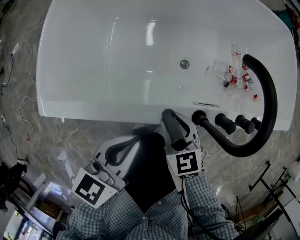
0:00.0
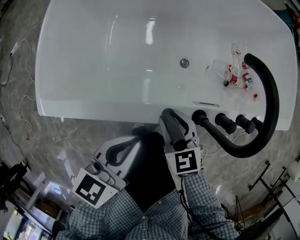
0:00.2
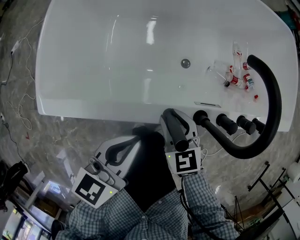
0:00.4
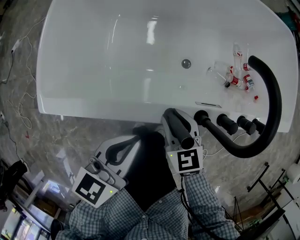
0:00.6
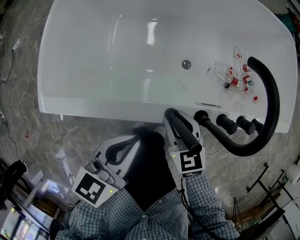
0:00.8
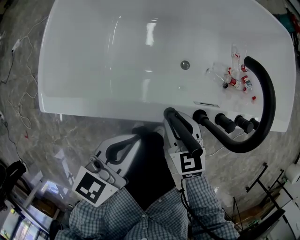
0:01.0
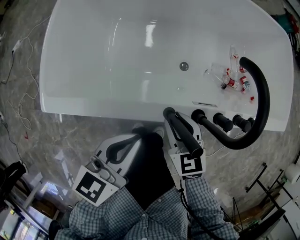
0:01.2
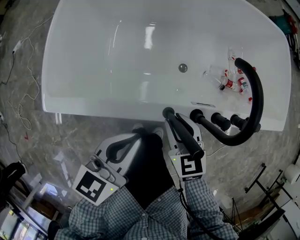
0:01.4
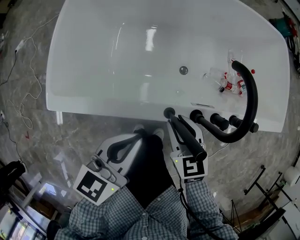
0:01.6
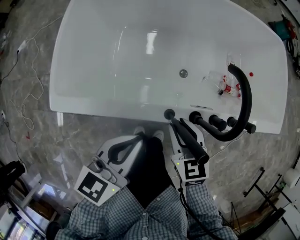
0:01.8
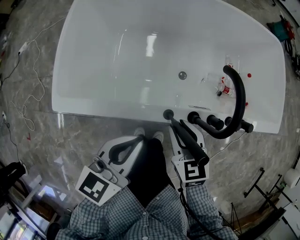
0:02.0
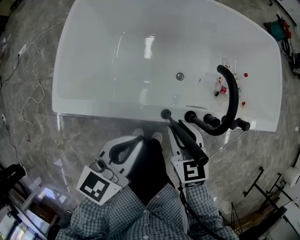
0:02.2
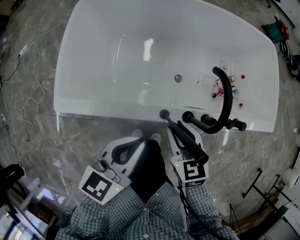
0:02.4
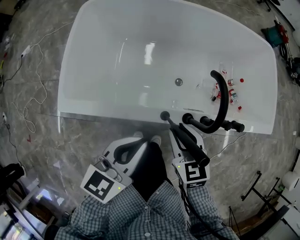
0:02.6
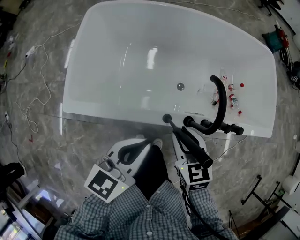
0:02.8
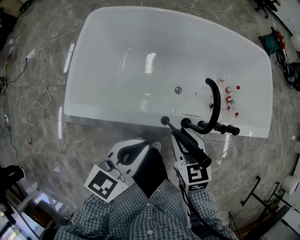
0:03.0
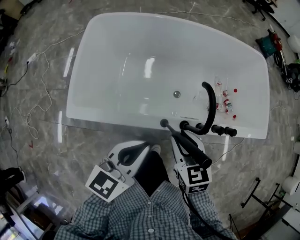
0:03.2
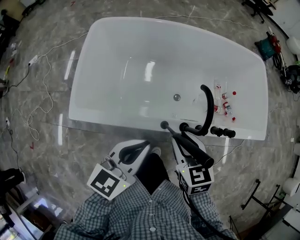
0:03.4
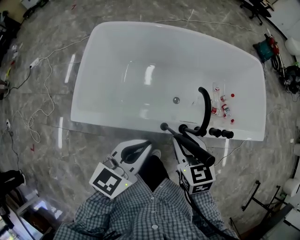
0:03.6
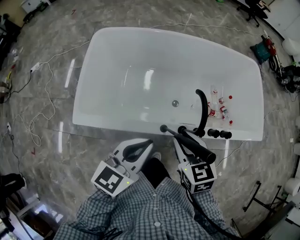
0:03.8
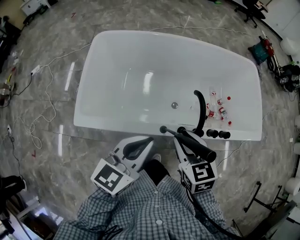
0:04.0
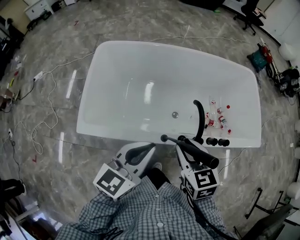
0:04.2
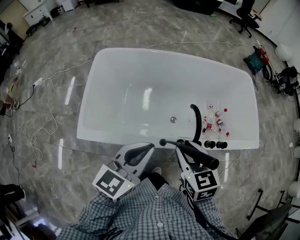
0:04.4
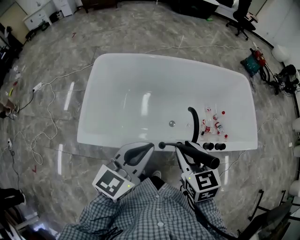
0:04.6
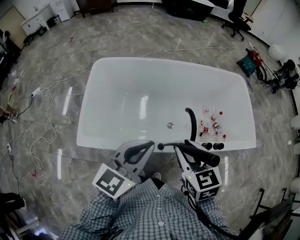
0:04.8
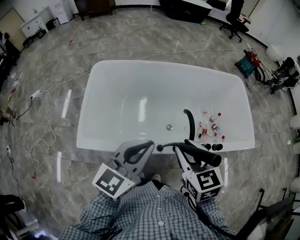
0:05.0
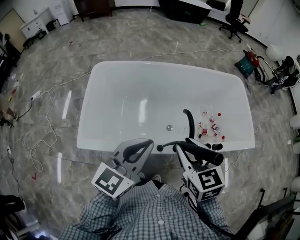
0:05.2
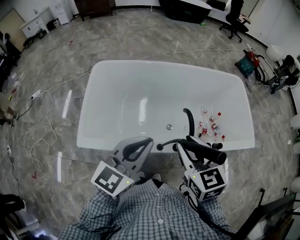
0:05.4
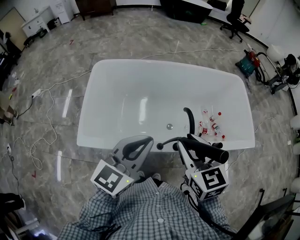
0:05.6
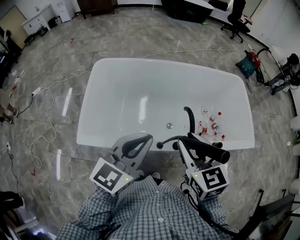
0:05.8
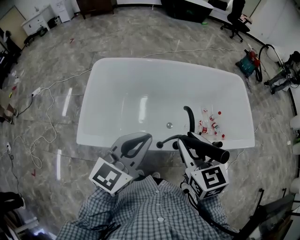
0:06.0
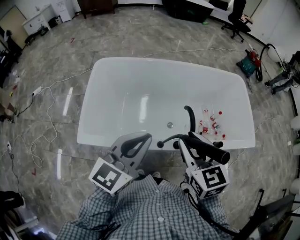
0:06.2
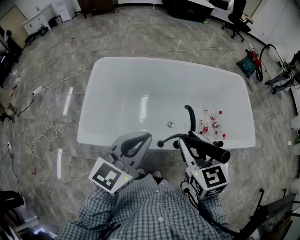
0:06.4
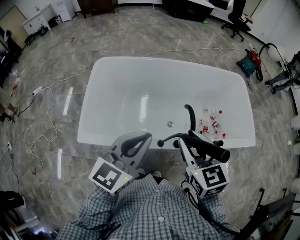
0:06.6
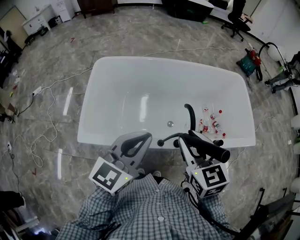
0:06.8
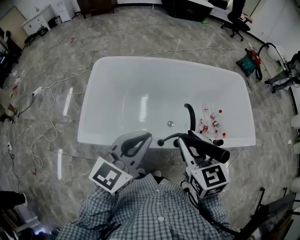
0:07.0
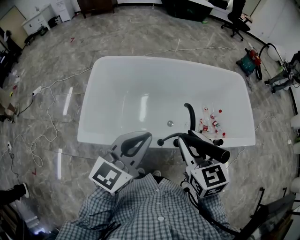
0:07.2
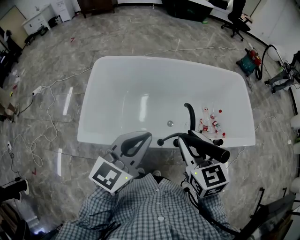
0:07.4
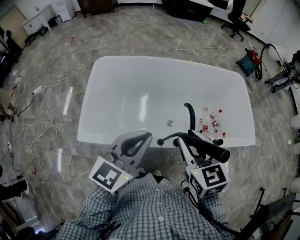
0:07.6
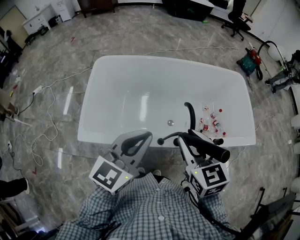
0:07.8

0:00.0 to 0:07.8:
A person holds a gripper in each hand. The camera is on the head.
0:00.0 to 0:01.6: The grippers both shift upward by roughly 5 cm.
0:01.6 to 0:03.2: Both grippers travel together upward, some 15 cm.
0:03.2 to 0:04.6: Both grippers move upward, approximately 15 cm.
0:04.6 to 0:06.2: The right gripper shifts about 5 cm upward.
0:06.2 to 0:07.8: The grippers make only small movements.

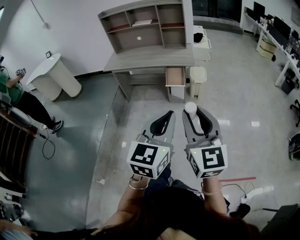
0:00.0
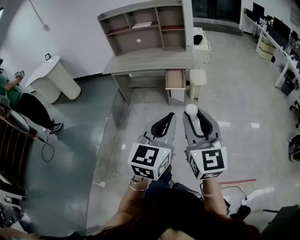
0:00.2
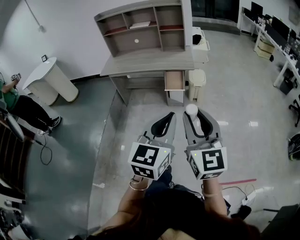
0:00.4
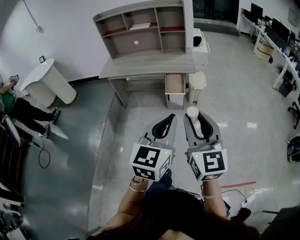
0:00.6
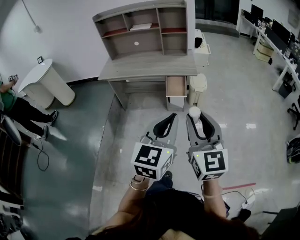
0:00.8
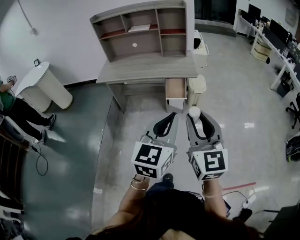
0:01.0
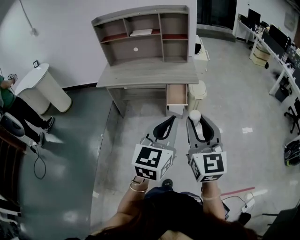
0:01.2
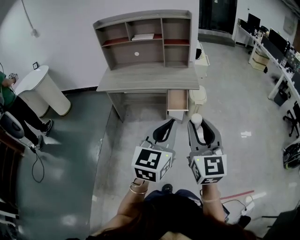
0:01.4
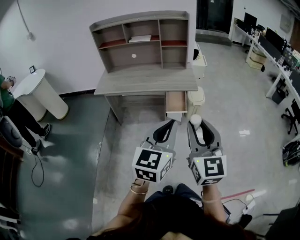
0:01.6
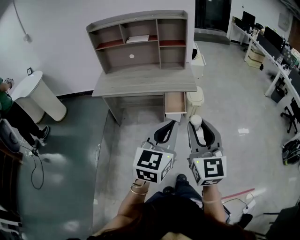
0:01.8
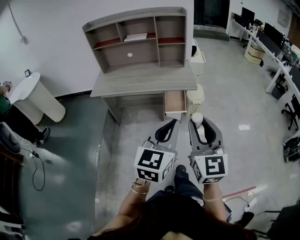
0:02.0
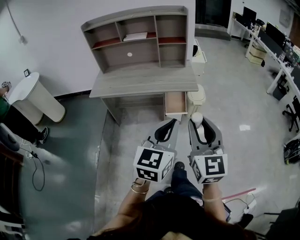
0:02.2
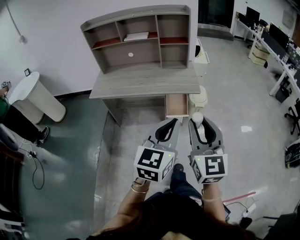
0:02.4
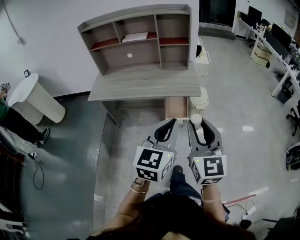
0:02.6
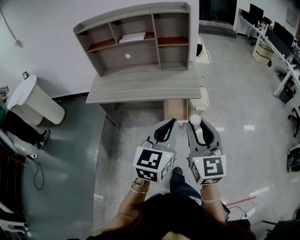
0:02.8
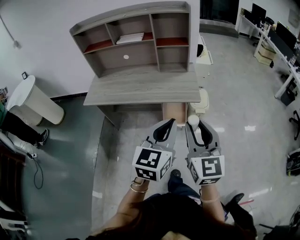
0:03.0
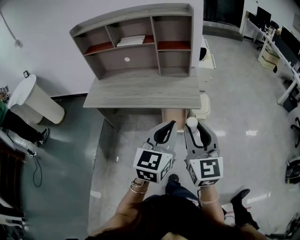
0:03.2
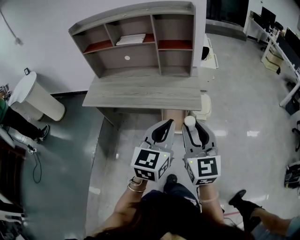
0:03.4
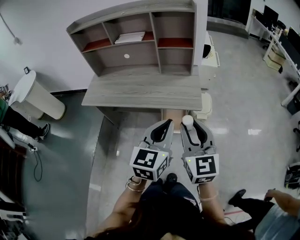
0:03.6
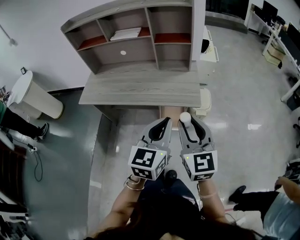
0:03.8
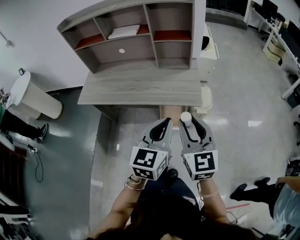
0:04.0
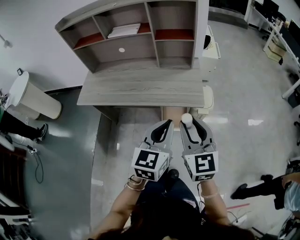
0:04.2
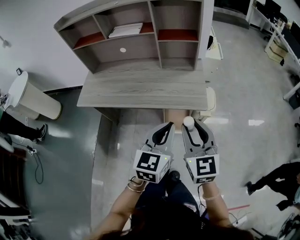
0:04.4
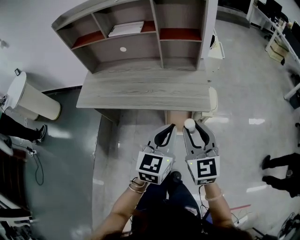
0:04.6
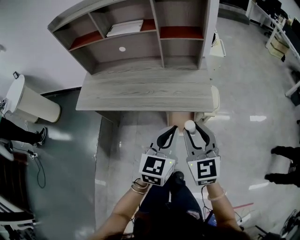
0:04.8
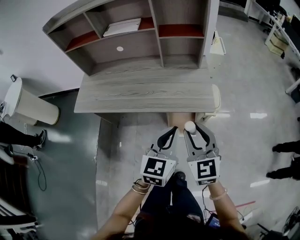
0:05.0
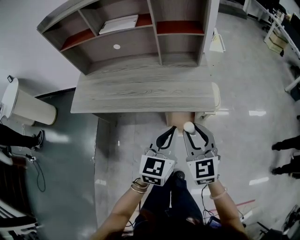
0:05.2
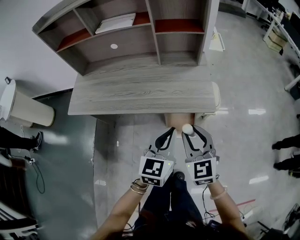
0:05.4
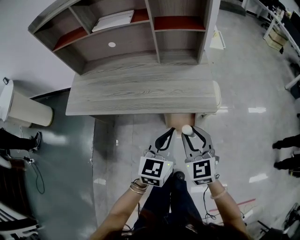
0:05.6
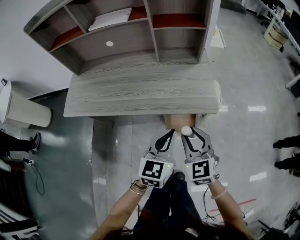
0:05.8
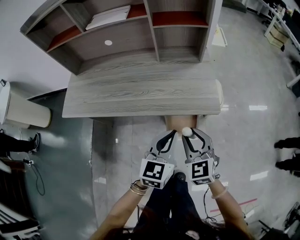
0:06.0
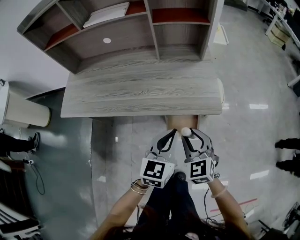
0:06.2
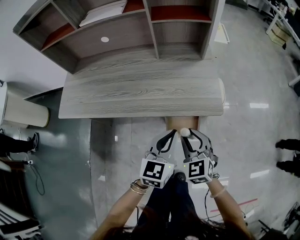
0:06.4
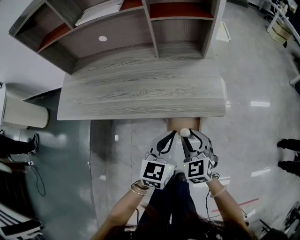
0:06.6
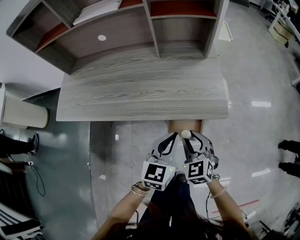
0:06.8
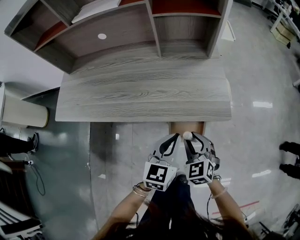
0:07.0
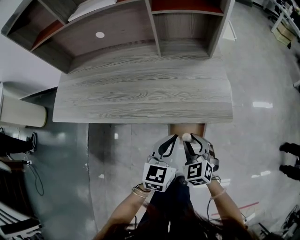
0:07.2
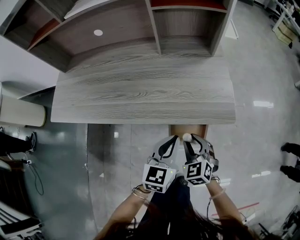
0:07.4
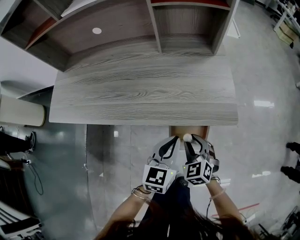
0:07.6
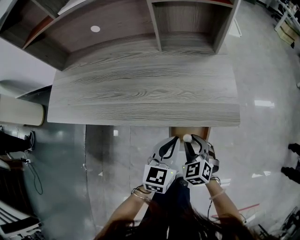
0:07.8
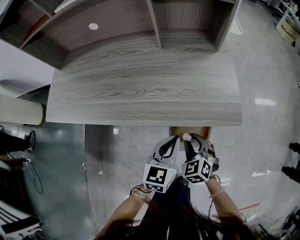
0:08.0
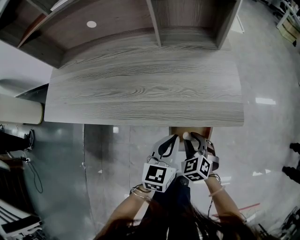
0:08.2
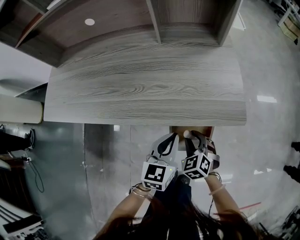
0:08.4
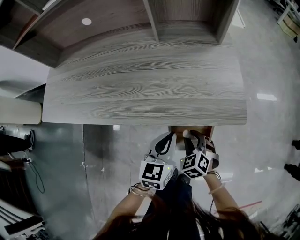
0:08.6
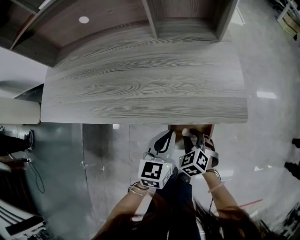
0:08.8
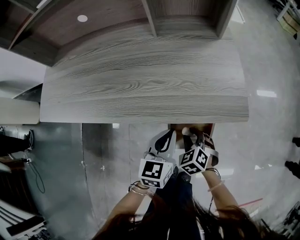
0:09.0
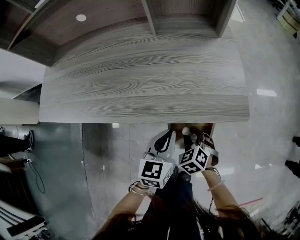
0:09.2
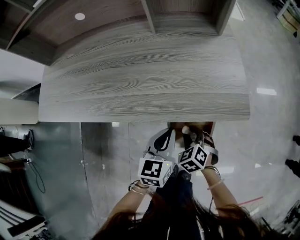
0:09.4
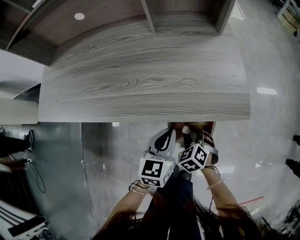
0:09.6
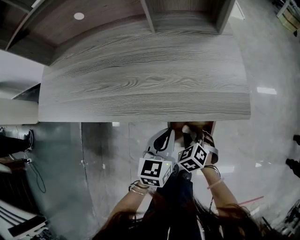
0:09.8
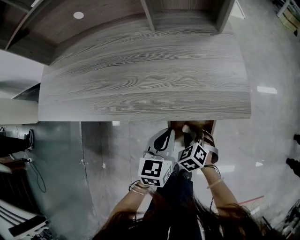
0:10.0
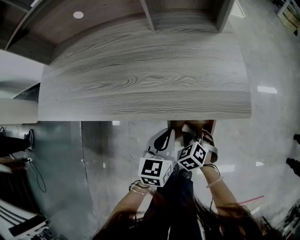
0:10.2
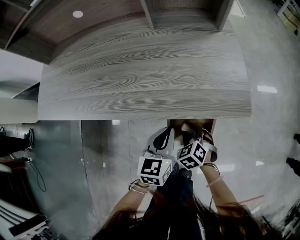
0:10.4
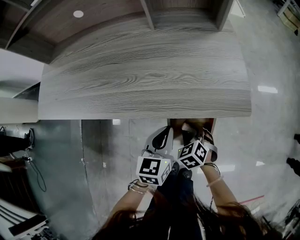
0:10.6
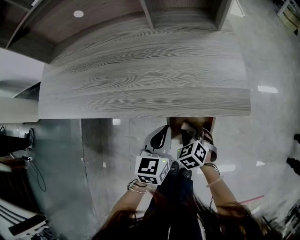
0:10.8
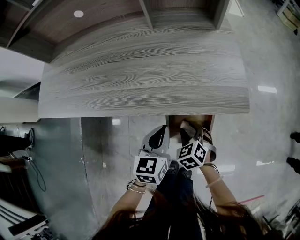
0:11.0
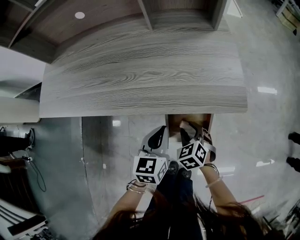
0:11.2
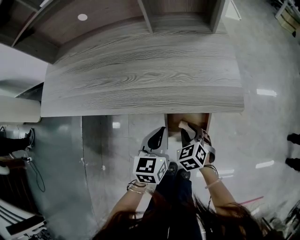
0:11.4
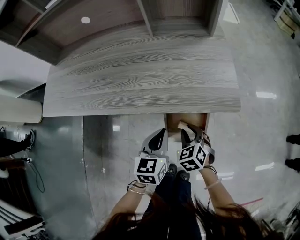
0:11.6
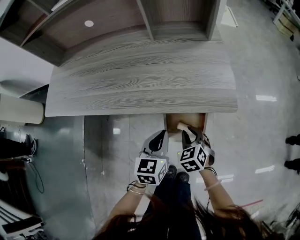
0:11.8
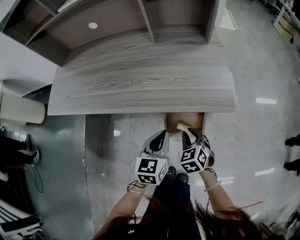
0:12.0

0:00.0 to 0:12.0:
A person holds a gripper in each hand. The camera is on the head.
0:00.0 to 0:01.6: Both grippers travel together forward and to the left, some 25 cm.
0:01.6 to 0:03.0: Both grippers travel together forward, roughly 25 cm.
0:03.0 to 0:04.4: Both grippers move forward and downward, some 15 cm.
0:04.4 to 0:06.0: The grippers both shift downward and forward by some 20 cm.
0:06.0 to 0:07.6: The grippers both shift downward by about 15 cm.
0:07.6 to 0:09.0: The two grippers go roughly 10 cm downward.
0:09.0 to 0:10.4: The grippers move only a little.
0:10.4 to 0:12.0: The left gripper changes place by about 5 cm. The right gripper travels upward by some 10 cm.

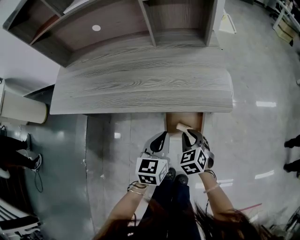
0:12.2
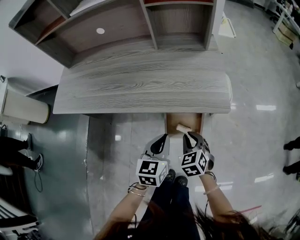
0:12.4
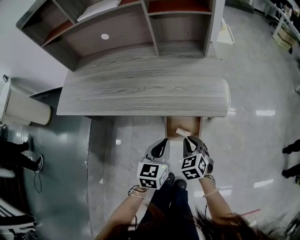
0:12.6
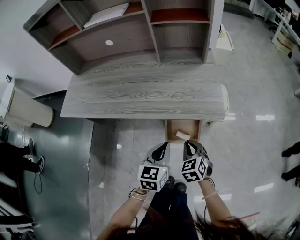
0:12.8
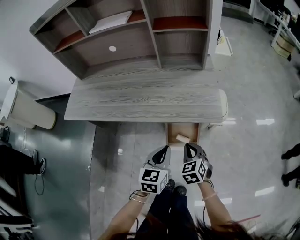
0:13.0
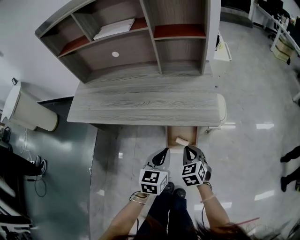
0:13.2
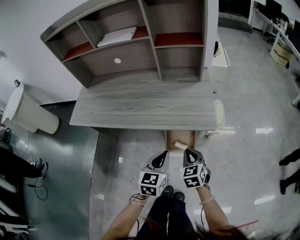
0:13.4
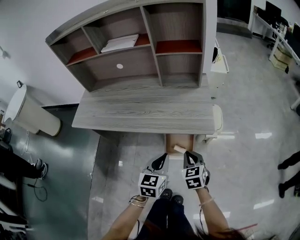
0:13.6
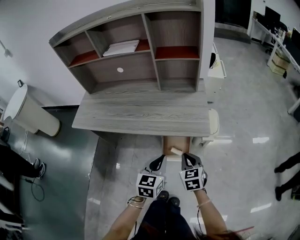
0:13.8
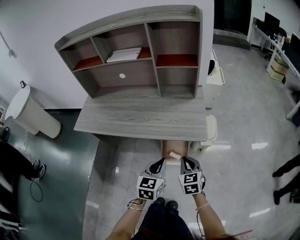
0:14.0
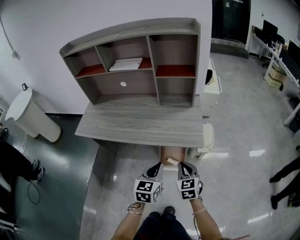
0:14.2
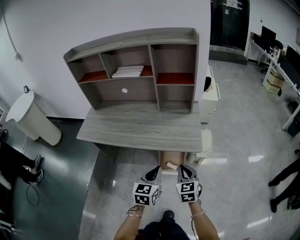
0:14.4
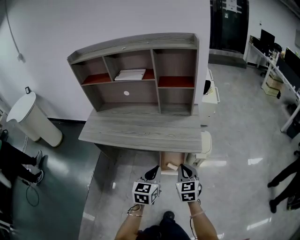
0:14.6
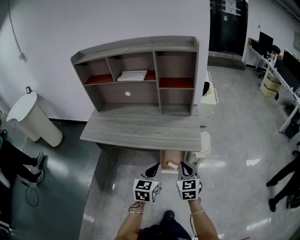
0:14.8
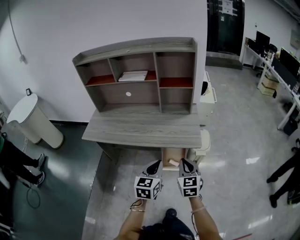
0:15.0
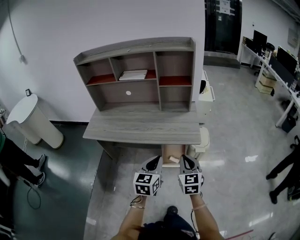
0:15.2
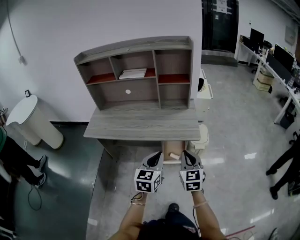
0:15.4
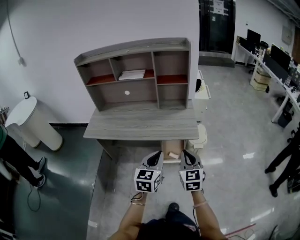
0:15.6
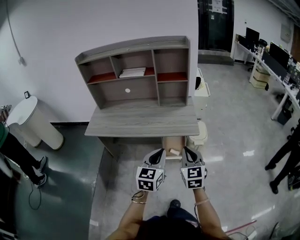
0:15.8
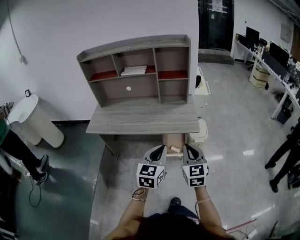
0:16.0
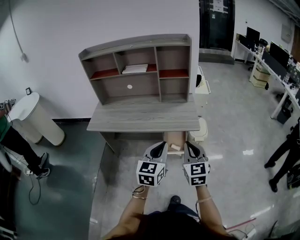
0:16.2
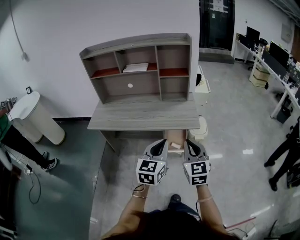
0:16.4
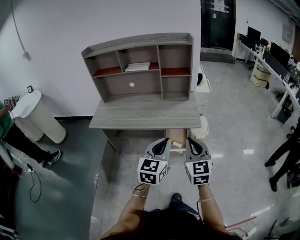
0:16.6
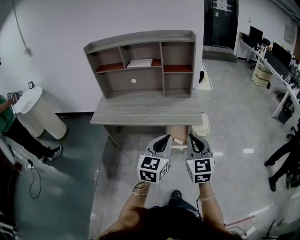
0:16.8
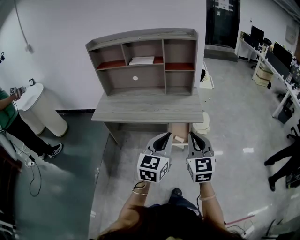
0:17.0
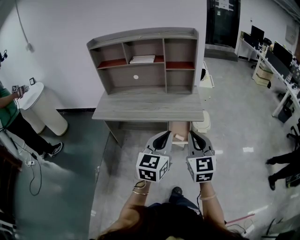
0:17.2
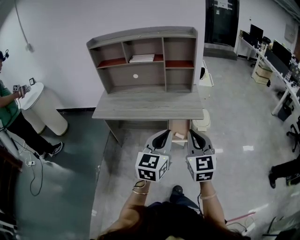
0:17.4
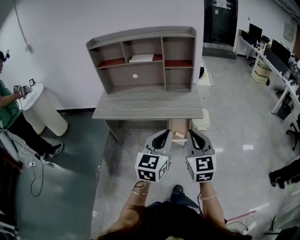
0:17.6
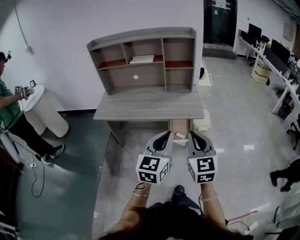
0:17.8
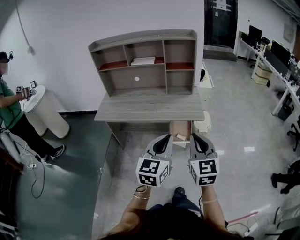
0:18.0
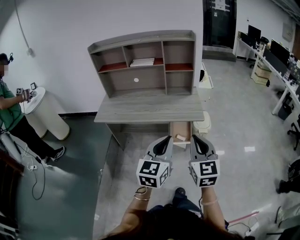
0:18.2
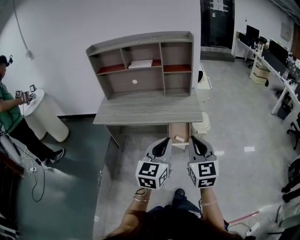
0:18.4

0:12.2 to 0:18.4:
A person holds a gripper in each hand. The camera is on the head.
0:12.2 to 0:13.8: The right gripper goes some 15 cm upward. Meanwhile the left gripper shifts approximately 15 cm upward and backward.
0:13.8 to 0:15.4: The two grippers go some 20 cm upward and backward. The right gripper turns by approximately 20 degrees.
0:15.4 to 0:16.8: The right gripper is displaced upward and backward by approximately 15 cm, while the left gripper goes approximately 15 cm backward and upward.
0:16.8 to 0:18.4: The grippers both shift backward by some 5 cm.
